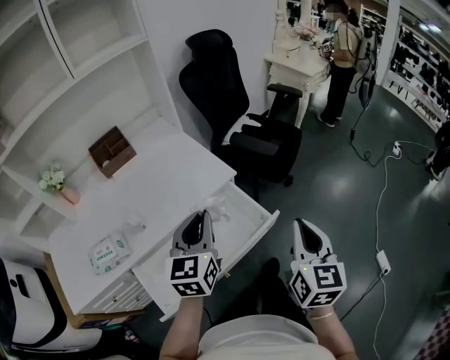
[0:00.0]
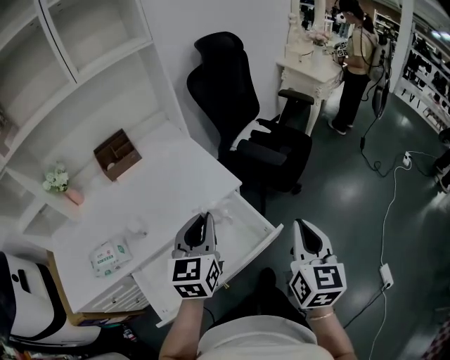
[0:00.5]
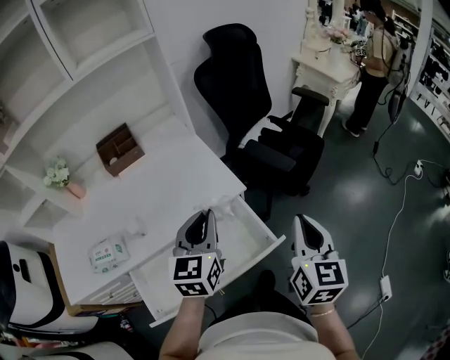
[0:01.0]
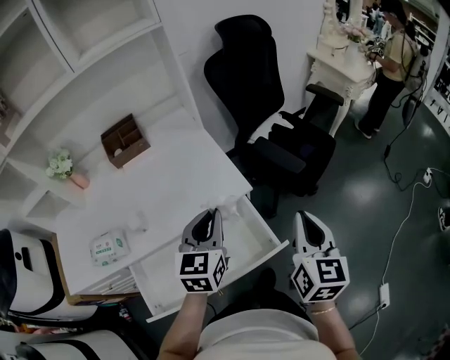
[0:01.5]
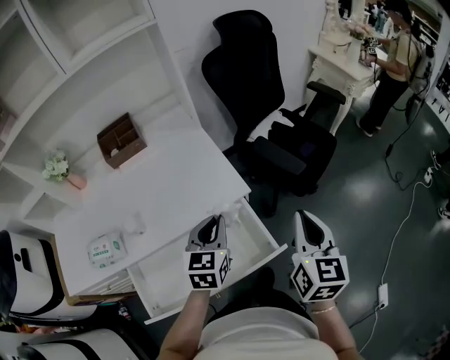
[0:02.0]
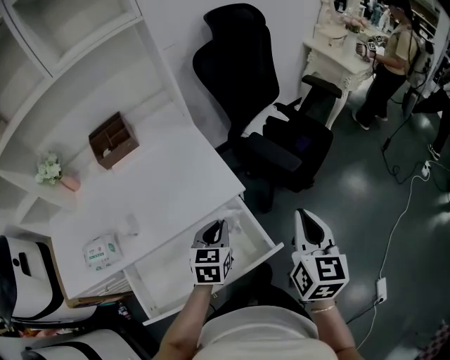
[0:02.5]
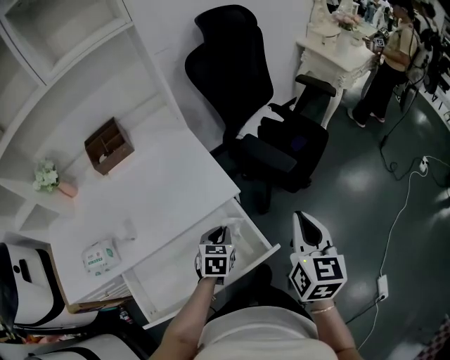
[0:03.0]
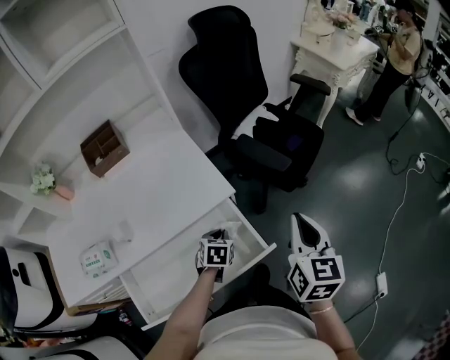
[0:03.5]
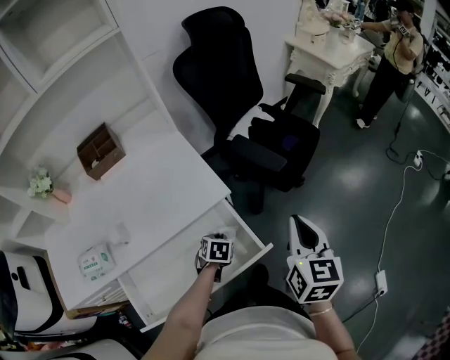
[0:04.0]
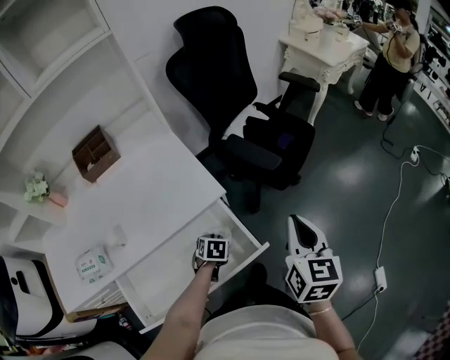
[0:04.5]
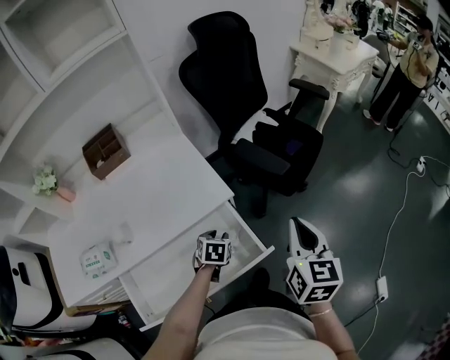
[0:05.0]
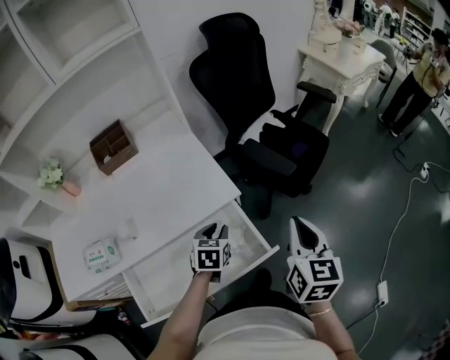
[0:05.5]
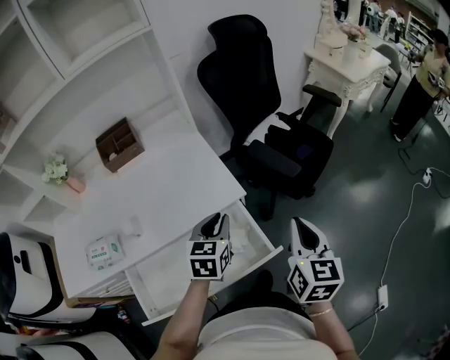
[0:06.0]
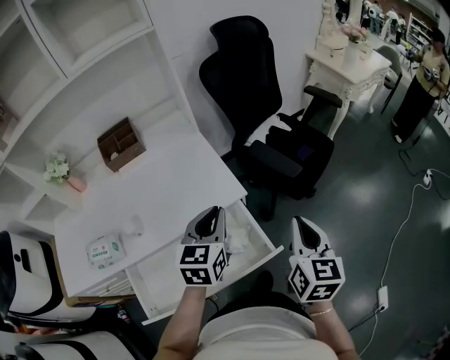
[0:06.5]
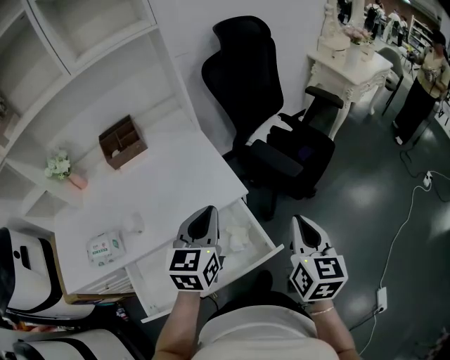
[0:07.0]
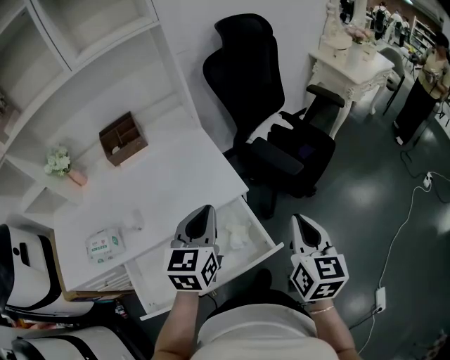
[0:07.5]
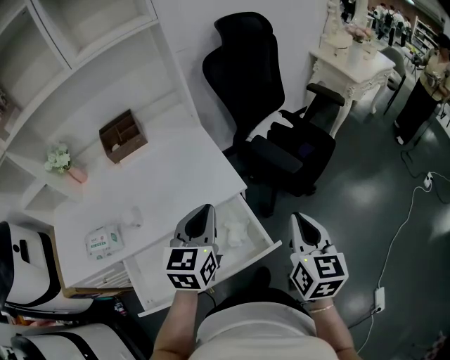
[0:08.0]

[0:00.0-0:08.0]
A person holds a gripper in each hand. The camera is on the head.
0:00.0 to 0:02.0: The right gripper shifts roughly 20 cm forward. Meanwhile the left gripper is displaced forward and downward by approximately 15 cm.
0:02.0 to 0:04.0: The left gripper is displaced downward by some 25 cm, and points its fingers about 40 degrees further downward; the right gripper moves about 5 cm.
0:04.0 to 0:06.0: The left gripper goes approximately 20 cm upward, and points its fingers about 30 degrees further upward.
0:06.0 to 0:08.0: The left gripper shifts approximately 10 cm upward.

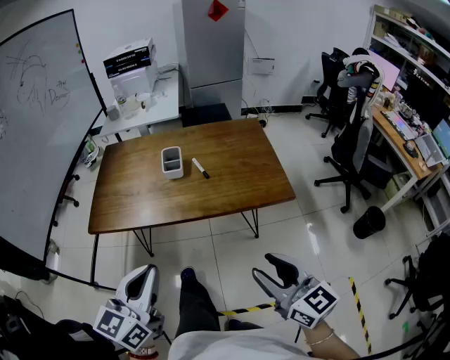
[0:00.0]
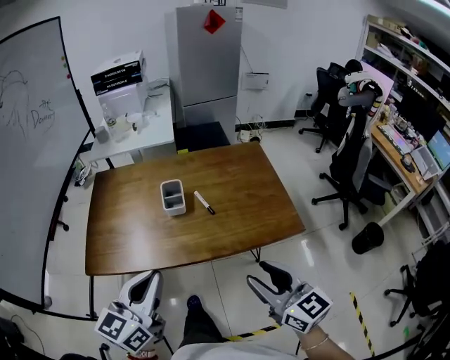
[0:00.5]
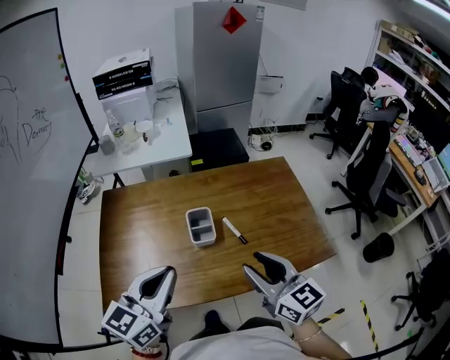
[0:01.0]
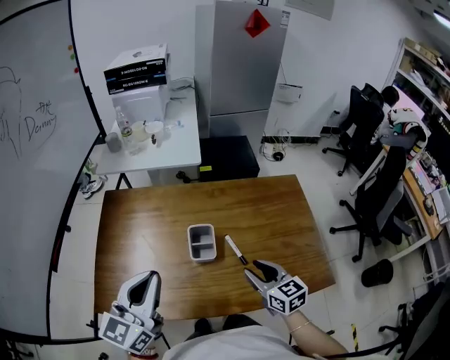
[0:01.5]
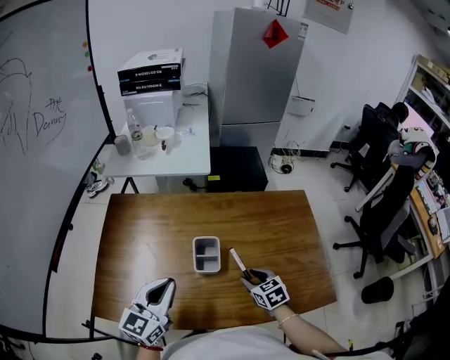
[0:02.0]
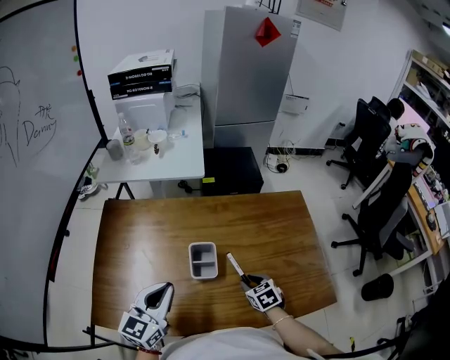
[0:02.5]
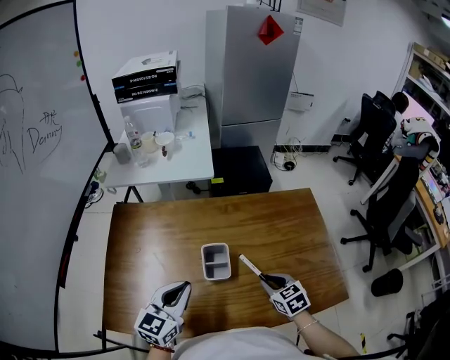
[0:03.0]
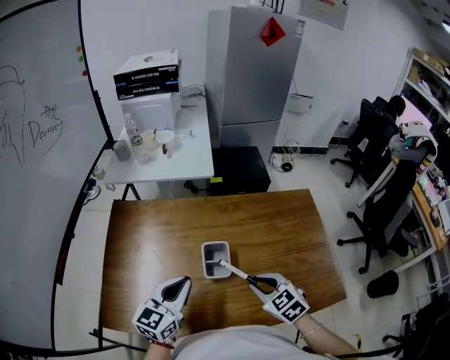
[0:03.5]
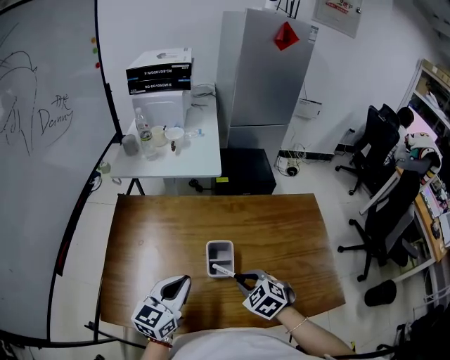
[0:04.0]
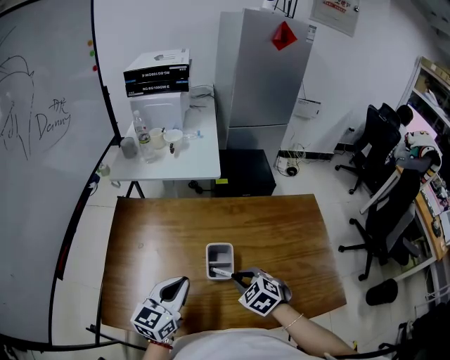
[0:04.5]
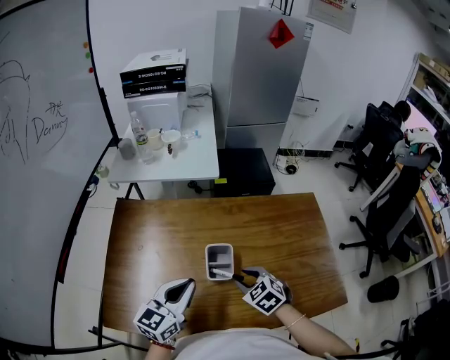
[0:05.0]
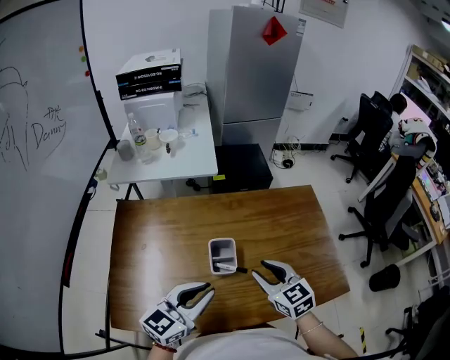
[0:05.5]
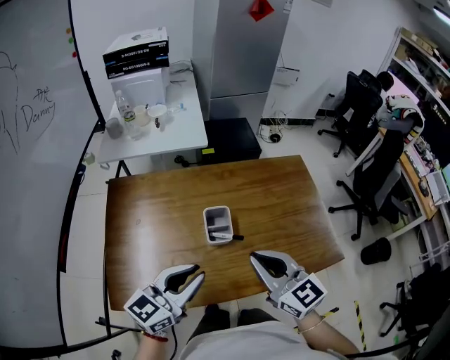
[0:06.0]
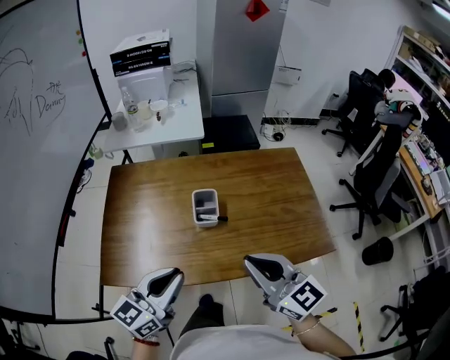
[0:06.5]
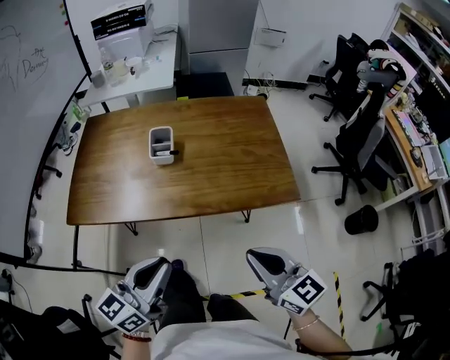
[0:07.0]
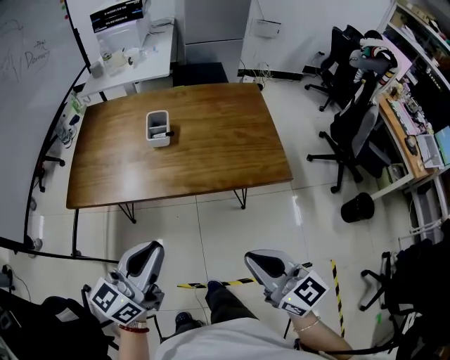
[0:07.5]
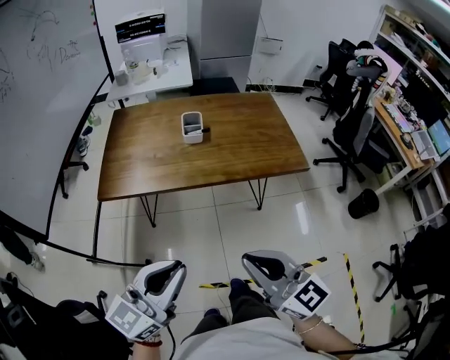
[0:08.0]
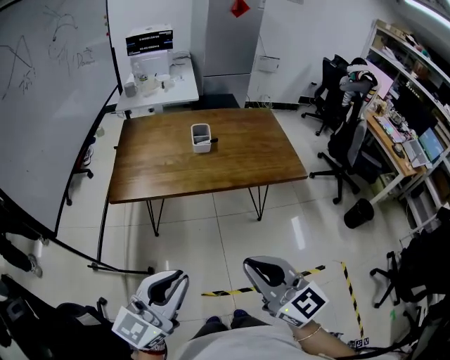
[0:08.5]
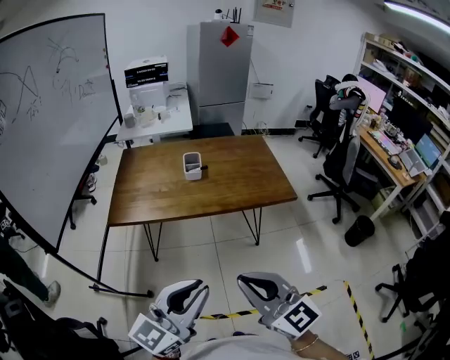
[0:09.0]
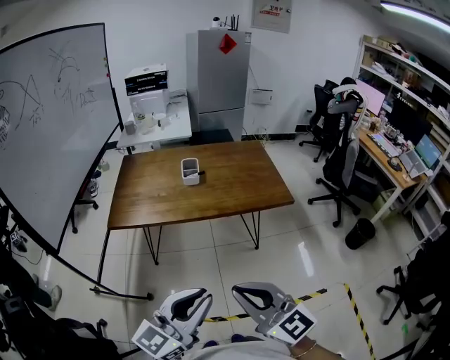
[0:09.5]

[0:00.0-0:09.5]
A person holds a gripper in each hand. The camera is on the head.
0:00.0 to 0:02.0: Both grippers are carried forward, roughly 50 cm. The right gripper is displaced downward by roughly 25 cm, and angles its fingers downward, by roughly 40 degrees.
0:02.0 to 0:04.0: The right gripper goes roughly 10 cm to the left and upward, and turns by roughly 30 degrees.
0:04.0 to 0:05.5: The right gripper goes roughly 10 cm upward, and rotates some 40 degrees; the left gripper changes place by about 10 cm, and rotates about 20 degrees.
0:05.5 to 0:07.5: The left gripper heads backward, covering about 35 cm, while the right gripper travels backward and to the right by roughly 50 cm, changes its angle by about 20 degrees, and closes.
0:07.5 to 0:09.5: The right gripper is displaced backward, to the left and upward by approximately 30 cm. Meanwhile the left gripper heads backward, covering about 25 cm.

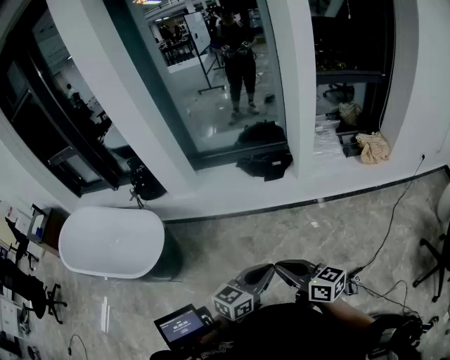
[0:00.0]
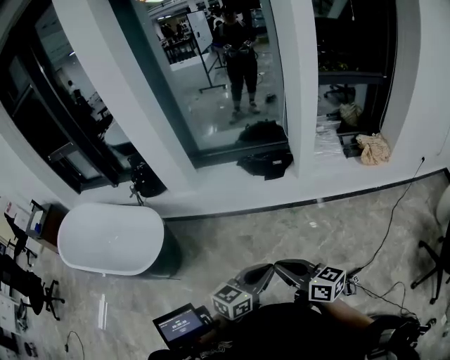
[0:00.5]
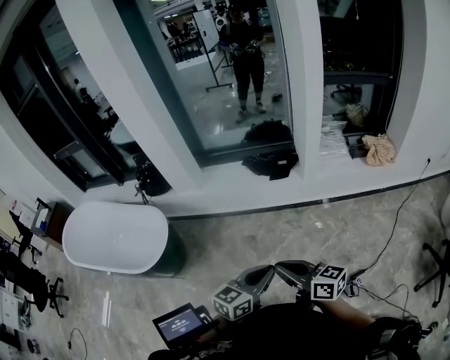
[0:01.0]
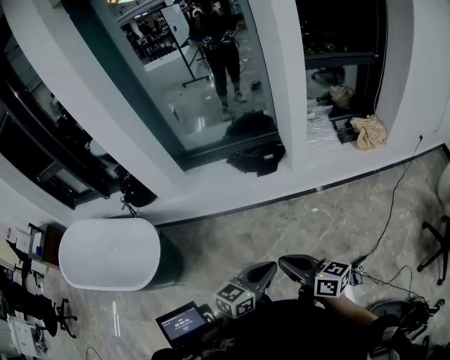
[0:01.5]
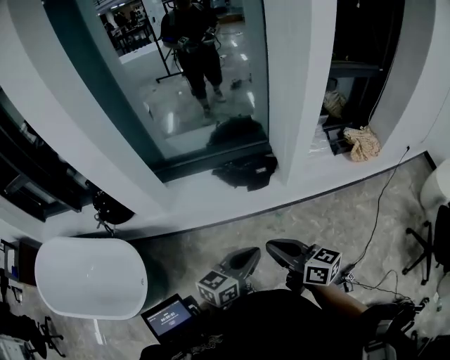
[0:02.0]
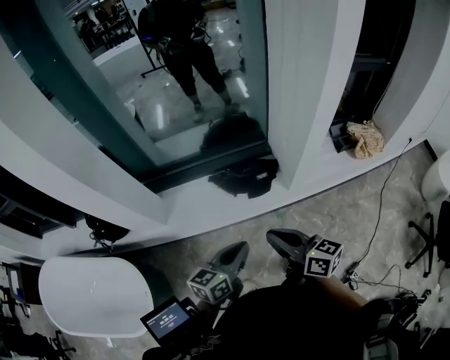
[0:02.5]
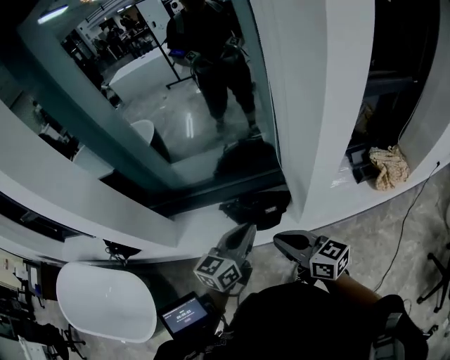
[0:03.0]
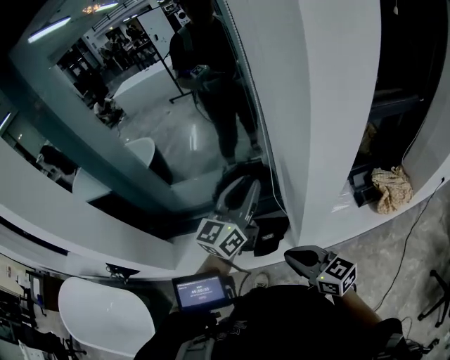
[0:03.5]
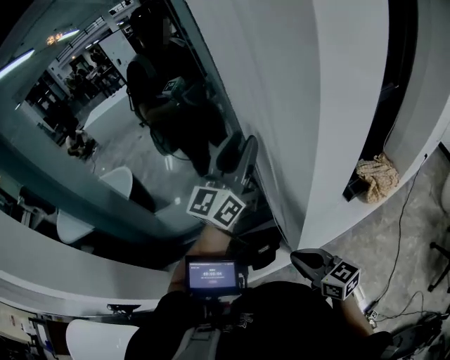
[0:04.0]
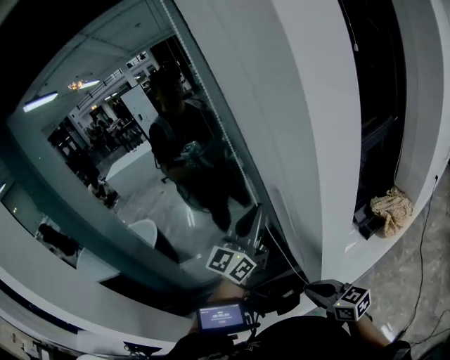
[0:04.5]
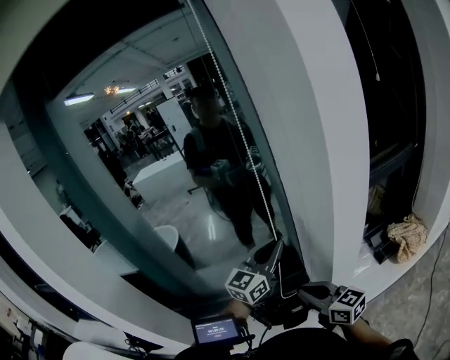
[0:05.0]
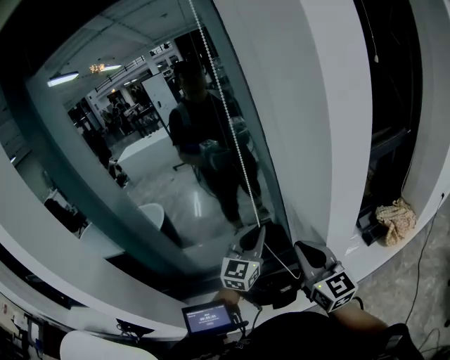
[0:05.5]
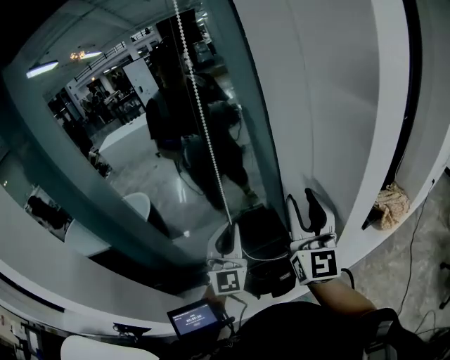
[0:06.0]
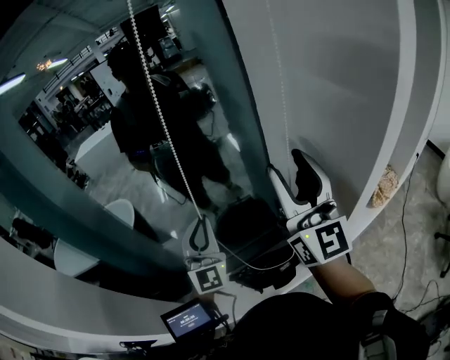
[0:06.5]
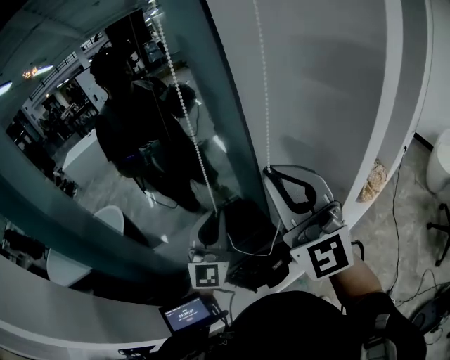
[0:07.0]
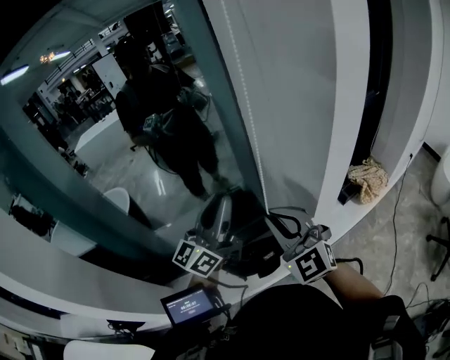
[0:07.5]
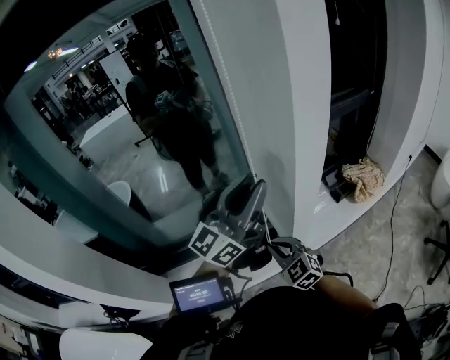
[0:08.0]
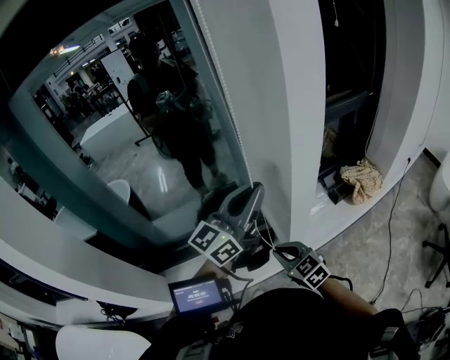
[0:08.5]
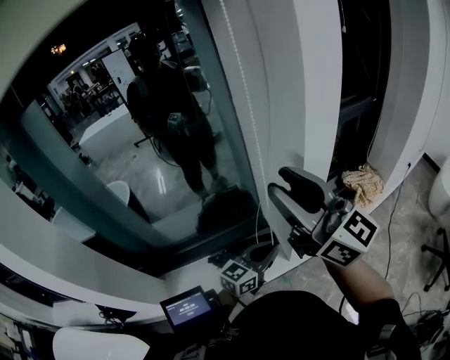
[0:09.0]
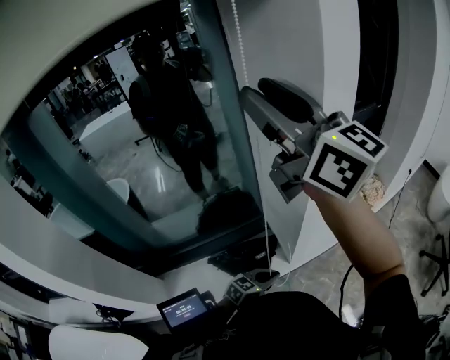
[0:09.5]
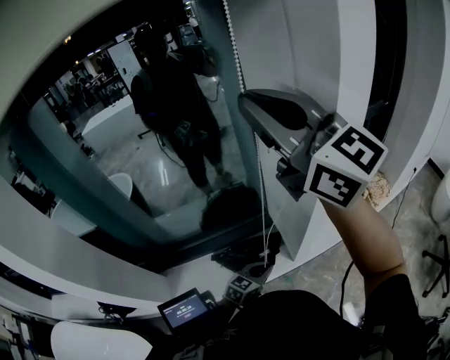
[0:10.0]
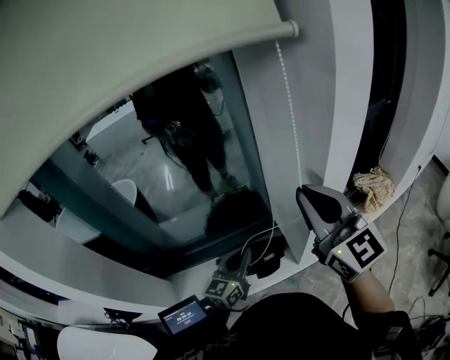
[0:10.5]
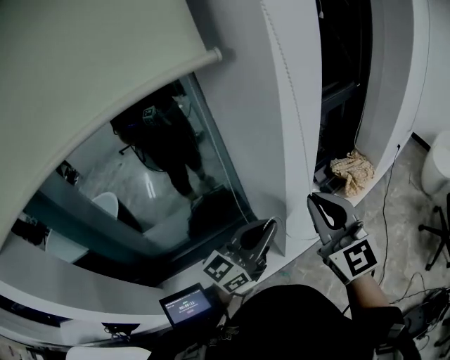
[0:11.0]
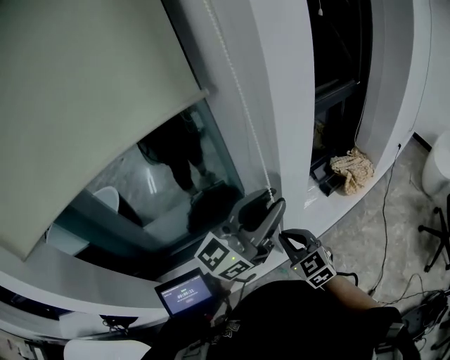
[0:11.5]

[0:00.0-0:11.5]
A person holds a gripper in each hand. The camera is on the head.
0:00.0 to 0:02.0: The two grippers go roughly 25 cm forward.
0:02.0 to 0:04.0: The left gripper travels forward and upward by roughly 60 cm, angles its fingers upward, by approximately 30 degrees, and opens its fingers; the right gripper heads forward and to the right, covering roughly 40 cm.
0:04.0 to 0:06.0: The right gripper heads upward and forward, covering approximately 25 cm, tilts its fingers roughly 30 degrees upward, and opens up; the left gripper moves to the left, downward and backward, about 20 cm, rolls clockwise, seen from behind, by some 40 degrees, and closes.
0:06.0 to 0:07.5: The left gripper is displaced upward and to the right by roughly 10 cm, and rolls counterclockwise, seen from behind, by about 50 degrees. The right gripper heads downward and backward, covering about 10 cm, swivels roughly 40 degrees, and closes up.
0:07.5 to 0:09.5: The left gripper travels downward and backward by approximately 40 cm, and angles its fingers downward, by about 50 degrees, while the right gripper is displaced upward by approximately 30 cm, twists approximately 40 degrees clockwise, seen from behind, and opens.
0:09.5 to 0:11.5: The right gripper travels downward by roughly 50 cm, tips its fingers downward by approximately 50 degrees, and closes, while the left gripper shifts approximately 40 cm upward, and tips its fingers upward by about 50 degrees.